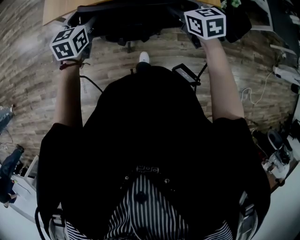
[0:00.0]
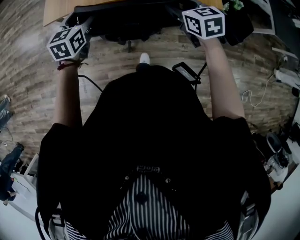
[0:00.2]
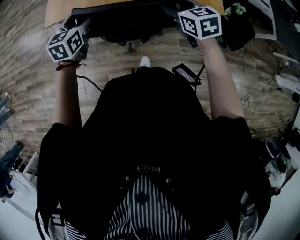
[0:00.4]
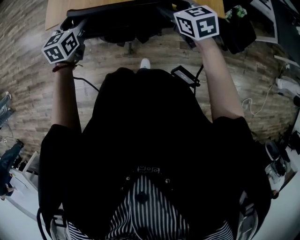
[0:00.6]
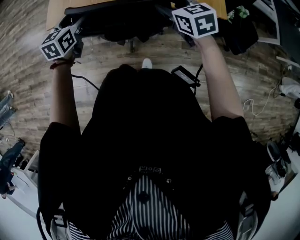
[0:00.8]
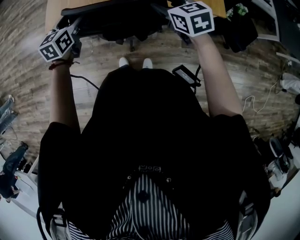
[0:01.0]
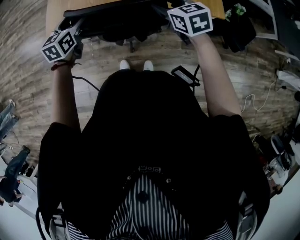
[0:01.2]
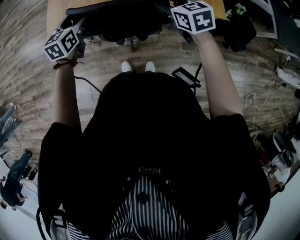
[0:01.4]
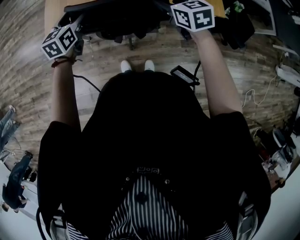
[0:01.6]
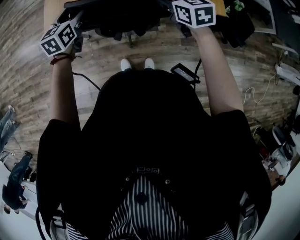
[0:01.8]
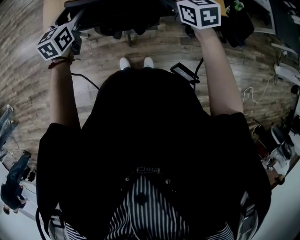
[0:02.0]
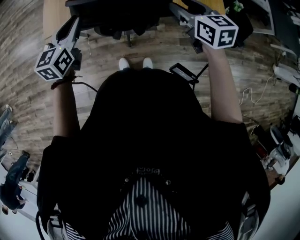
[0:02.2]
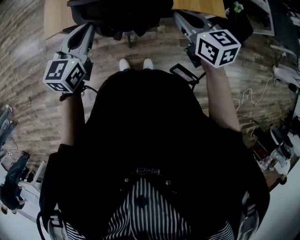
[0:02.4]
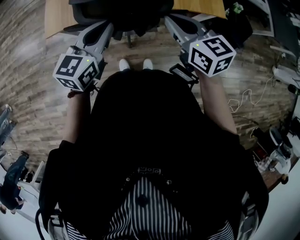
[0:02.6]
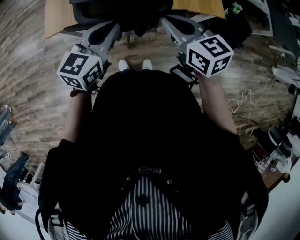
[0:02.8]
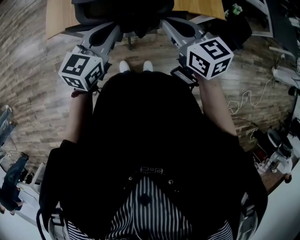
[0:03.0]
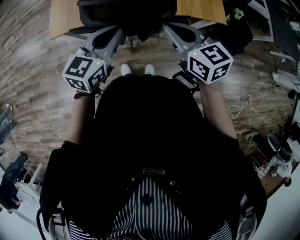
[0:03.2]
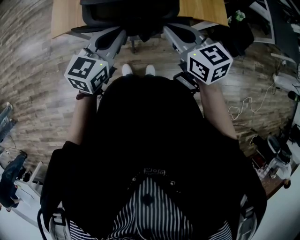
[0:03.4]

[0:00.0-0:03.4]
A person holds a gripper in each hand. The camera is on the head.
0:00.0 to 0:01.6: Both grippers travel together forward, about 20 cm.
0:01.6 to 0:03.4: The right gripper heads backward and upward, covering about 15 cm, and closes up. Meanwhile the left gripper is displaced backward, to the right and upward by about 20 cm, changes its angle by some 20 degrees, and closes.

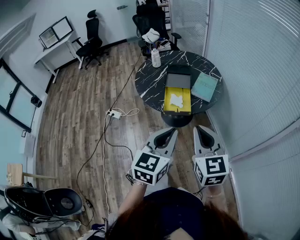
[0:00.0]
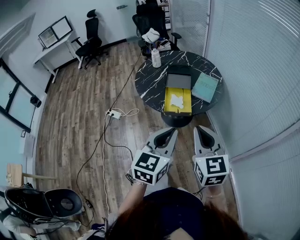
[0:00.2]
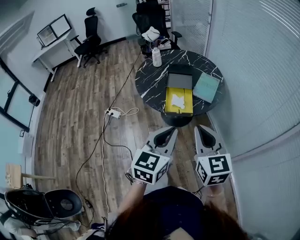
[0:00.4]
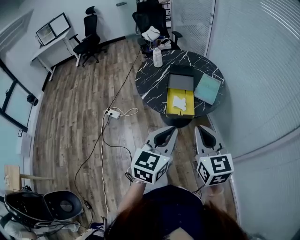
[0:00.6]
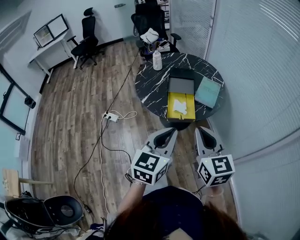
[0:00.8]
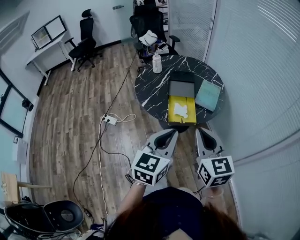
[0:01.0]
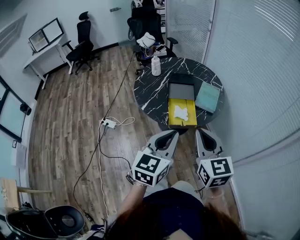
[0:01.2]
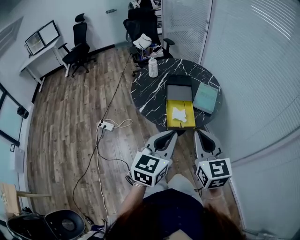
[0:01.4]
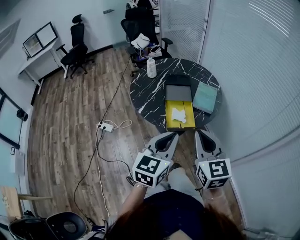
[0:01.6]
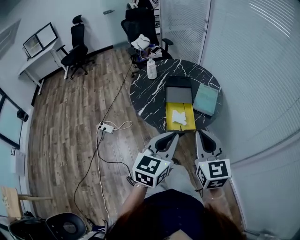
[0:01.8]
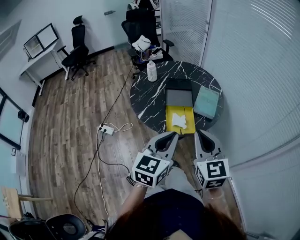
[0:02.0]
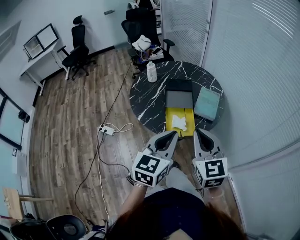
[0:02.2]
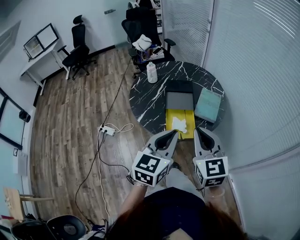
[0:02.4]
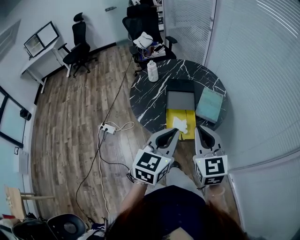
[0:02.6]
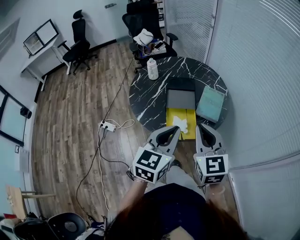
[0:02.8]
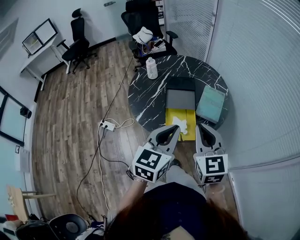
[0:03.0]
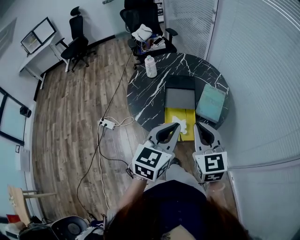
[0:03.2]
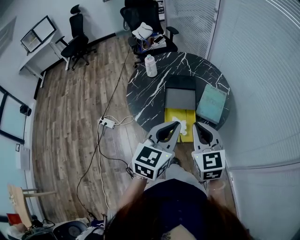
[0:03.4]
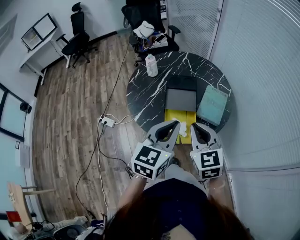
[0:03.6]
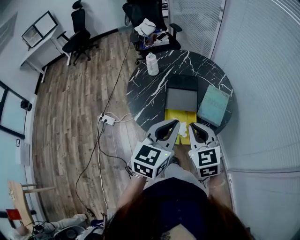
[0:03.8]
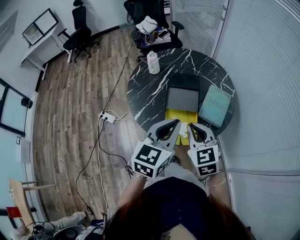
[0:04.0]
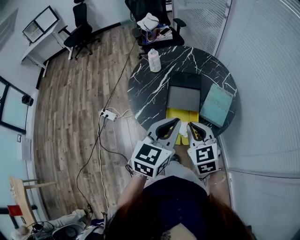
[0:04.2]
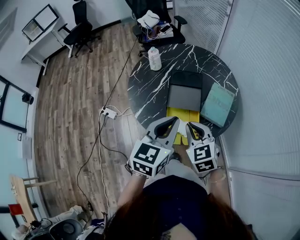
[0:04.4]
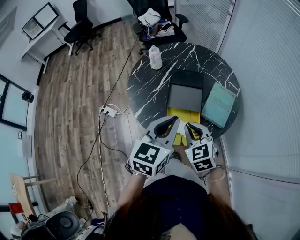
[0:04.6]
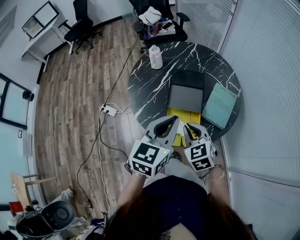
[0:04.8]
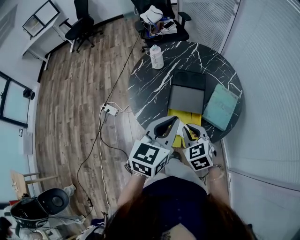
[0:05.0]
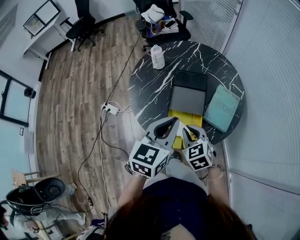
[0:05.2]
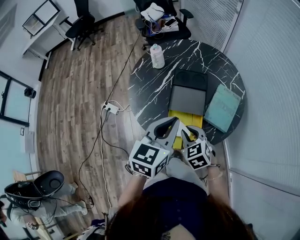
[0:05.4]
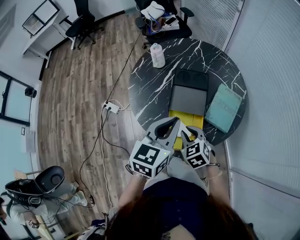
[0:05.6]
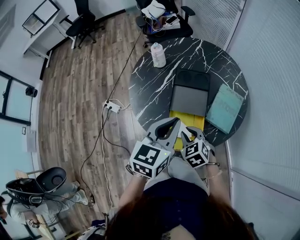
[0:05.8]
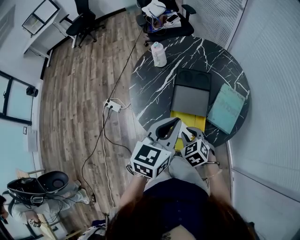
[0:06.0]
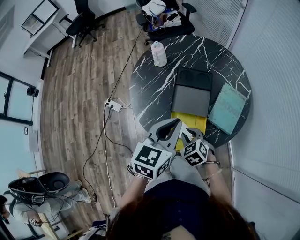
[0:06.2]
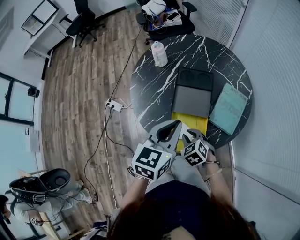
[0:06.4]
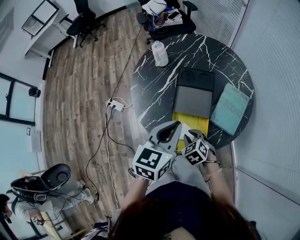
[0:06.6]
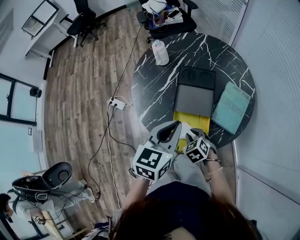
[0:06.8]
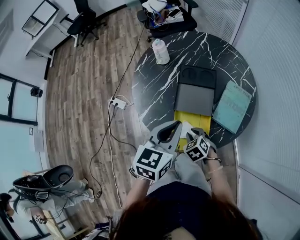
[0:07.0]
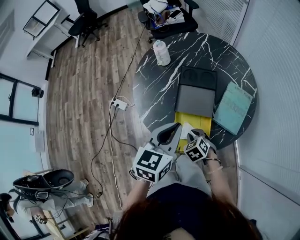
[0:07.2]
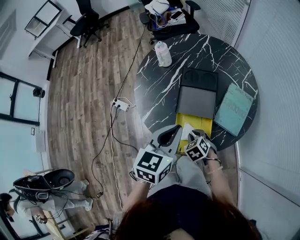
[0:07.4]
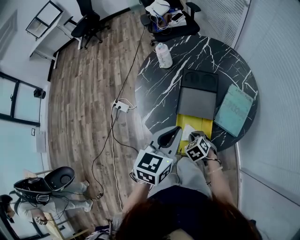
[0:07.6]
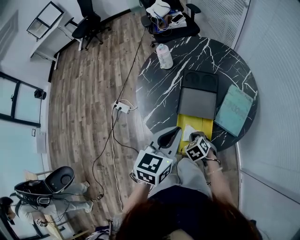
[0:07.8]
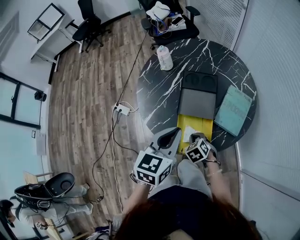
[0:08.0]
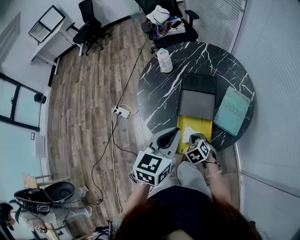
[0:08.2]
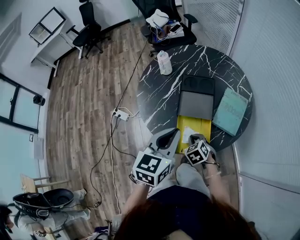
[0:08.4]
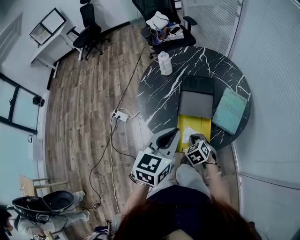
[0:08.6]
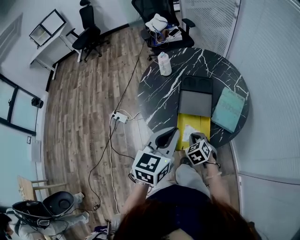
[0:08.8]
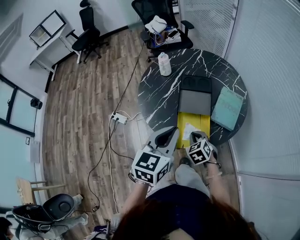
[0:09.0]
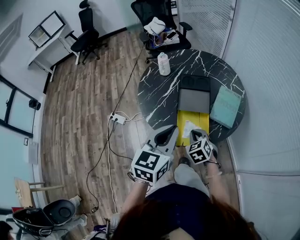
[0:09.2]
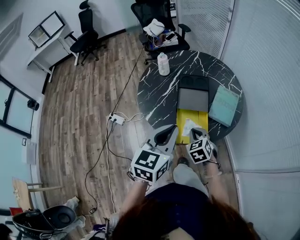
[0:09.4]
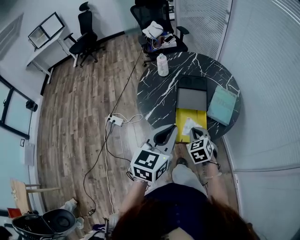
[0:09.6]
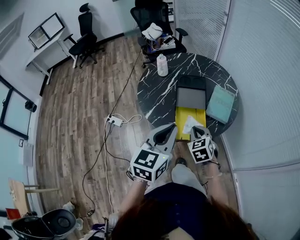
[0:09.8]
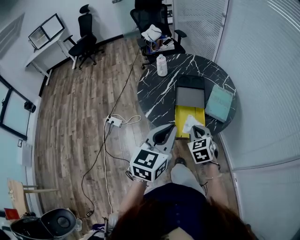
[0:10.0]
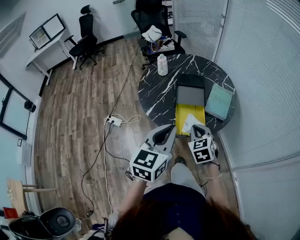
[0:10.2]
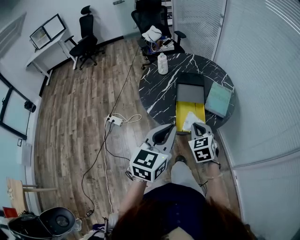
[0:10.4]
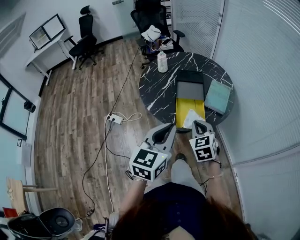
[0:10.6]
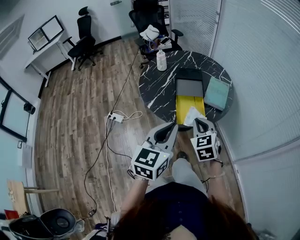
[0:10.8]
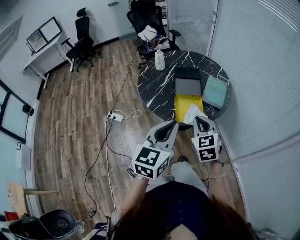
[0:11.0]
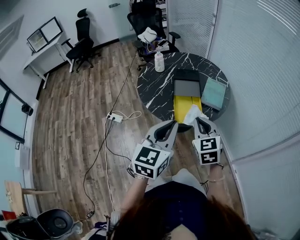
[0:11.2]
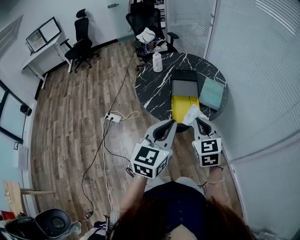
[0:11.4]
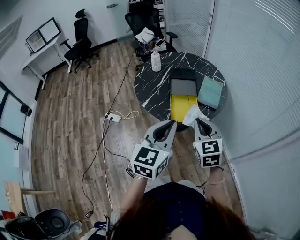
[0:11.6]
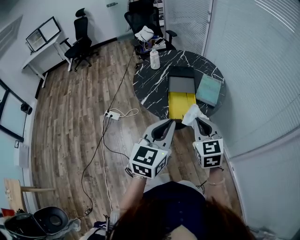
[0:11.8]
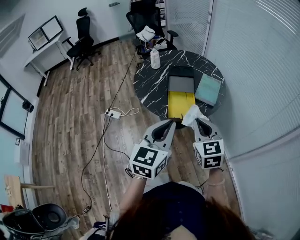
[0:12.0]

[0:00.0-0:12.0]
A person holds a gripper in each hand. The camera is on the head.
0:00.0 to 0:01.6: The two grippers go approximately 10 cm forward and to the left.
0:01.6 to 0:03.0: Both grippers move forward, roughly 15 cm.
0:03.0 to 0:04.4: The right gripper goes about 15 cm downward and forward, and swivels roughly 20 degrees, while the left gripper shifts about 10 cm forward.
0:04.4 to 0:06.0: The right gripper heads downward, covering about 15 cm, and swivels approximately 20 degrees. The left gripper heads forward, covering approximately 5 cm.
0:06.0 to 0:07.6: The right gripper is displaced downward by roughly 10 cm.
0:07.6 to 0:09.0: The left gripper travels backward by roughly 5 cm; the right gripper moves upward, some 10 cm.
0:09.0 to 0:10.4: The right gripper goes some 15 cm upward and backward. The left gripper travels backward by about 10 cm.
0:10.4 to 0:12.0: The left gripper heads backward, covering some 10 cm; the right gripper shifts roughly 15 cm backward, upward and to the right.

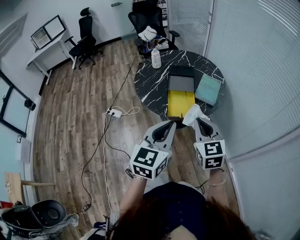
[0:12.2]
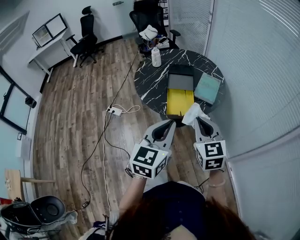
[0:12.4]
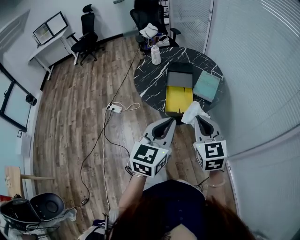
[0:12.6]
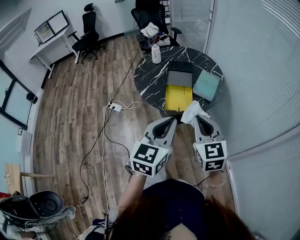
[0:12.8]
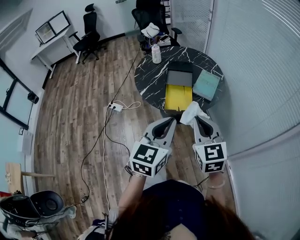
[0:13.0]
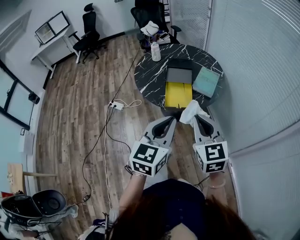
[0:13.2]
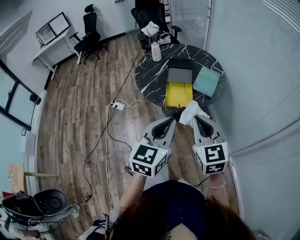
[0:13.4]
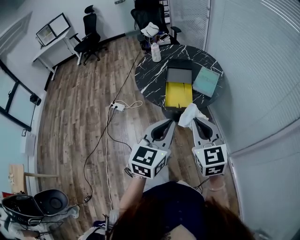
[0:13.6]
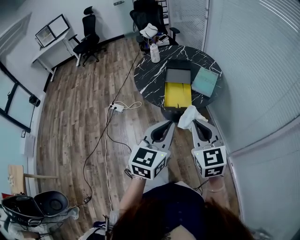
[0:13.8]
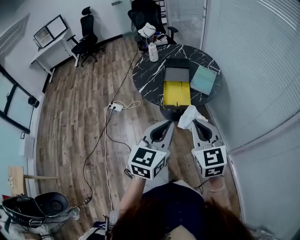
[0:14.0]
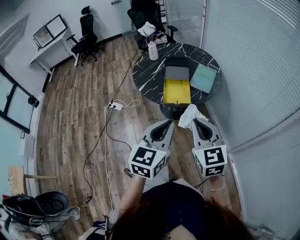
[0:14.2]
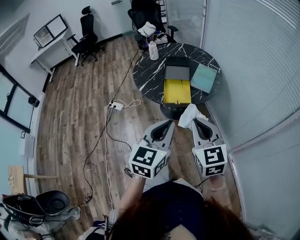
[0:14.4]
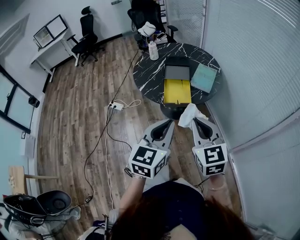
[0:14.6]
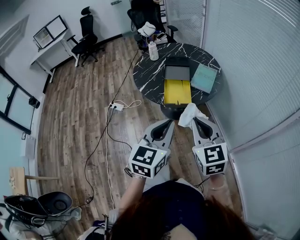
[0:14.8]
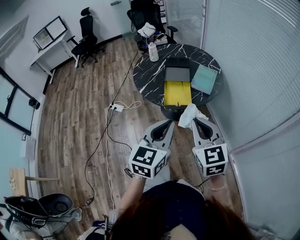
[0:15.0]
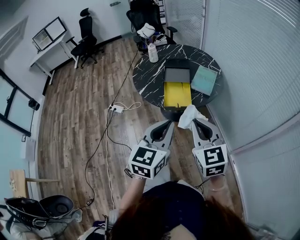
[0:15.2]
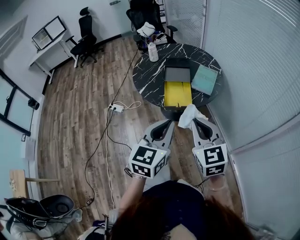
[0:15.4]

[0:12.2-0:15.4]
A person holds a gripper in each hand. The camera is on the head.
0:12.2 to 0:13.8: The grippers both shift backward by approximately 10 cm.
0:13.8 to 0:15.4: The grippers move only a little.

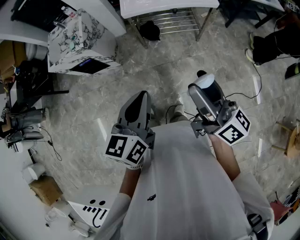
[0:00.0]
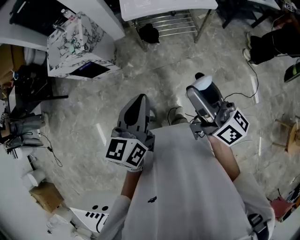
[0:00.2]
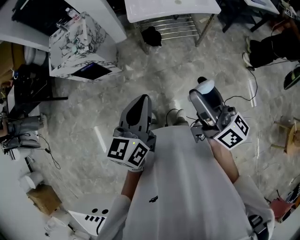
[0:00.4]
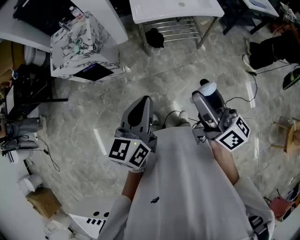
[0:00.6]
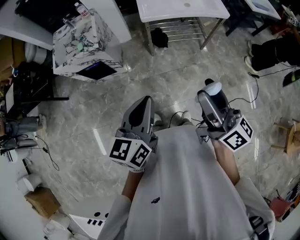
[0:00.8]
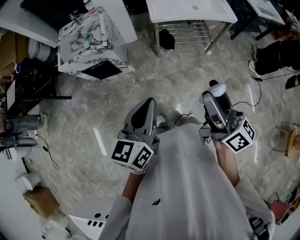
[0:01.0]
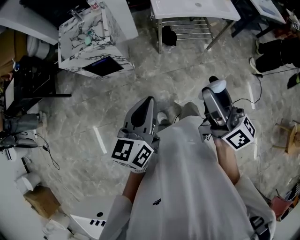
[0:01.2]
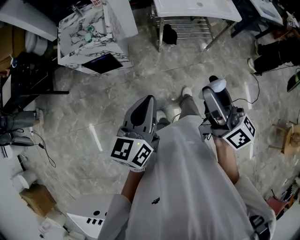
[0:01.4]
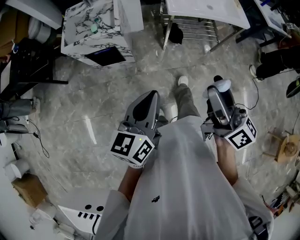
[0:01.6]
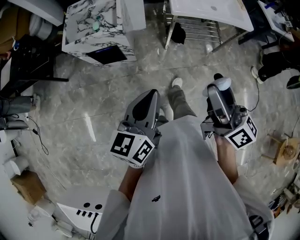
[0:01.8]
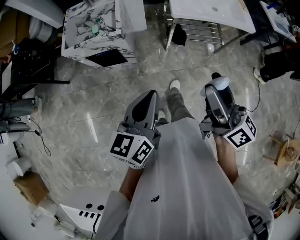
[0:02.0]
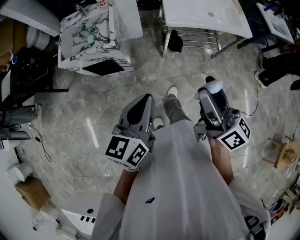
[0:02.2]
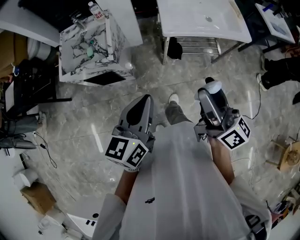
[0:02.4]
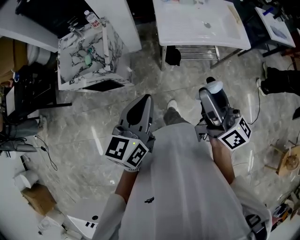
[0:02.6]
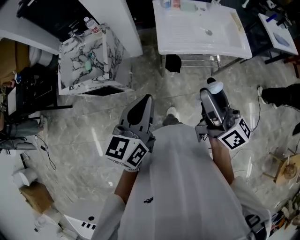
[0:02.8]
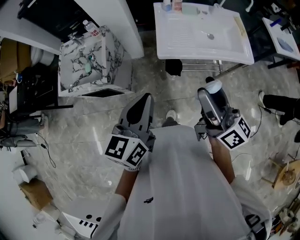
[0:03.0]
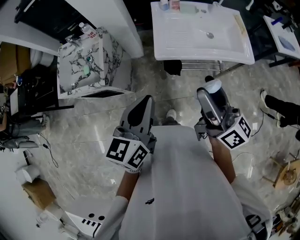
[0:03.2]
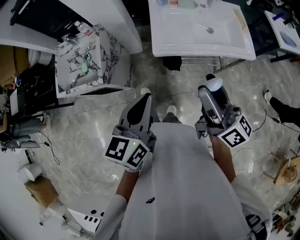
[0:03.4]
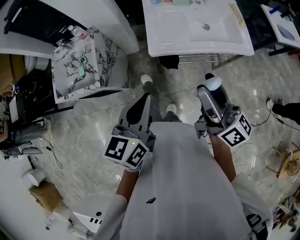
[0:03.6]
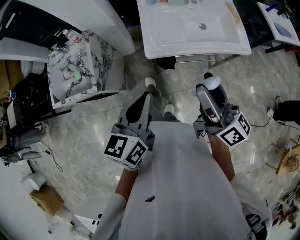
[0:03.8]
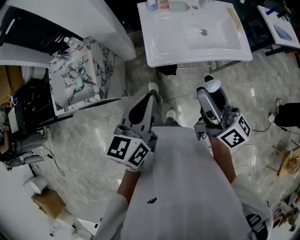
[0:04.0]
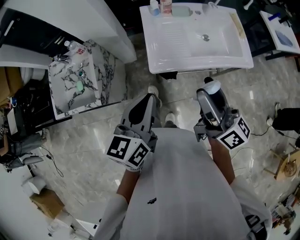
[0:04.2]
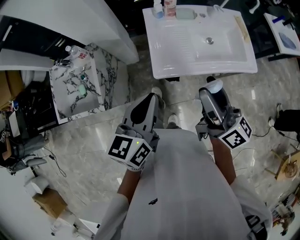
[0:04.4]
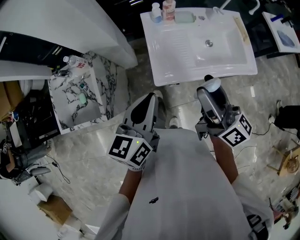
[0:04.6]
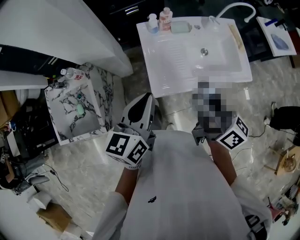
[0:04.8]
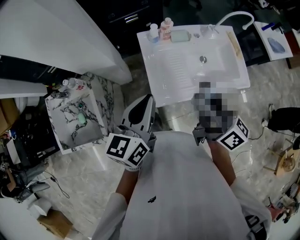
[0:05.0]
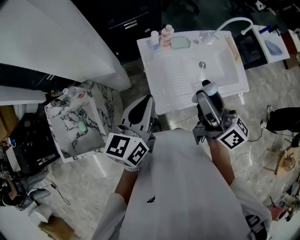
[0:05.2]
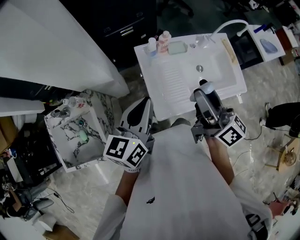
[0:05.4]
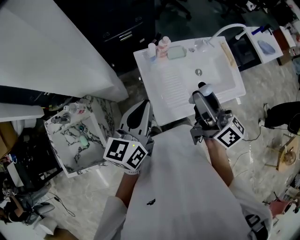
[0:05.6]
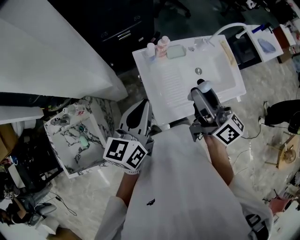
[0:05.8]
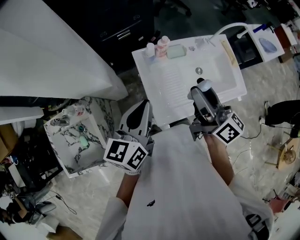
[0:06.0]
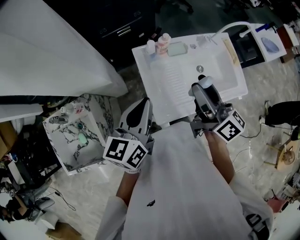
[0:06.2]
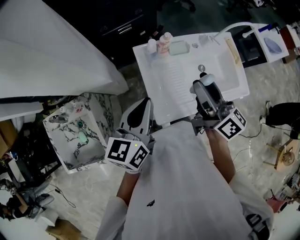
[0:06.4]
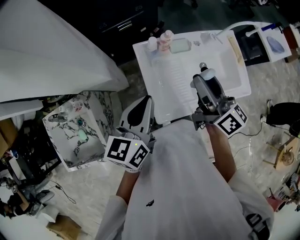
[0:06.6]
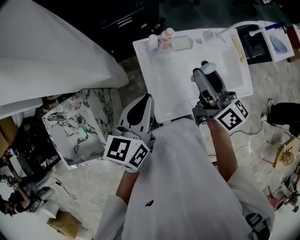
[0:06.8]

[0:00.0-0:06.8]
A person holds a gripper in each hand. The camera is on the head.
0:00.0 to 0:01.4: The two grippers go approximately 25 cm to the left.
0:01.4 to 0:02.8: Both grippers move forward, approximately 25 cm.
0:02.8 to 0:04.0: The two grippers go some 15 cm forward and to the right.
0:04.0 to 0:05.4: The two grippers go about 25 cm forward.
0:05.4 to 0:06.8: The right gripper moves forward, some 10 cm. The left gripper goes some 5 cm forward.
